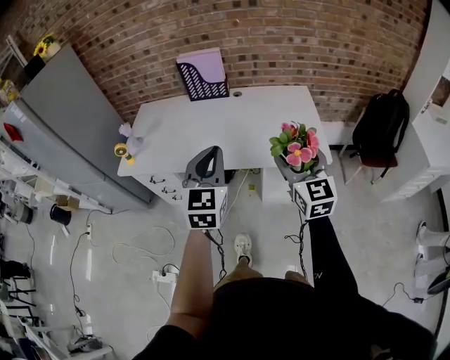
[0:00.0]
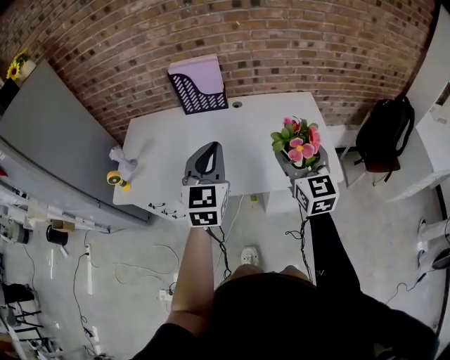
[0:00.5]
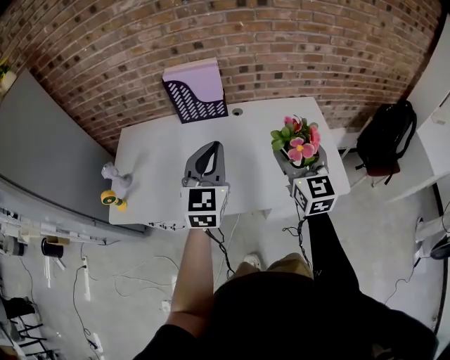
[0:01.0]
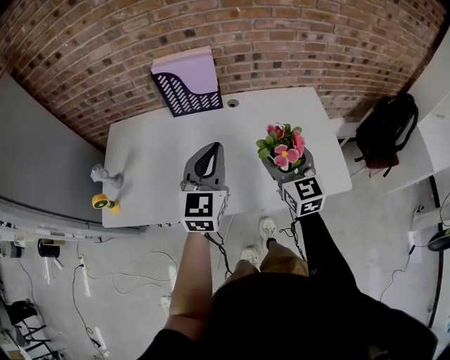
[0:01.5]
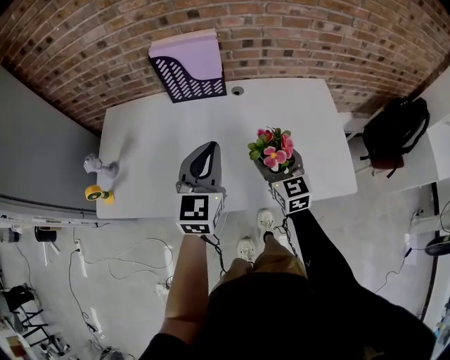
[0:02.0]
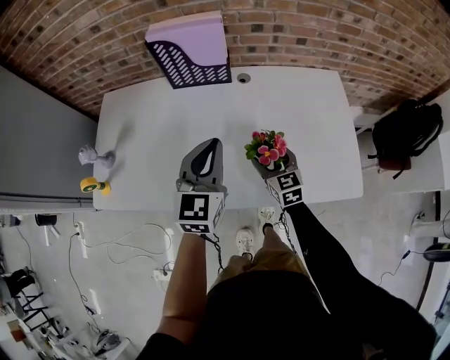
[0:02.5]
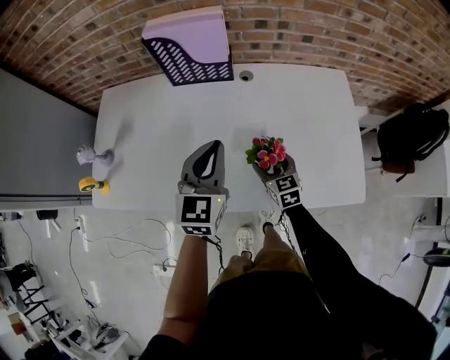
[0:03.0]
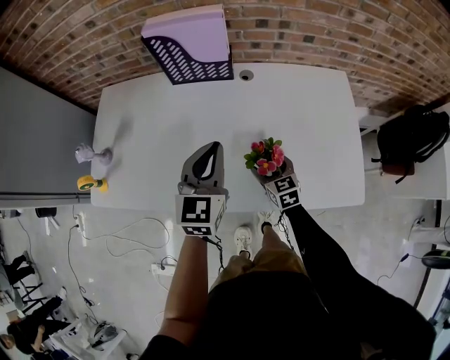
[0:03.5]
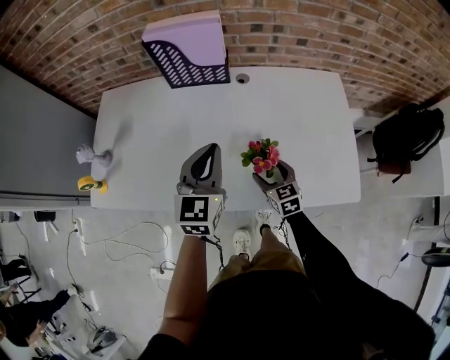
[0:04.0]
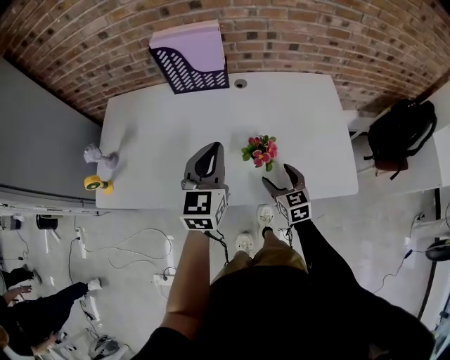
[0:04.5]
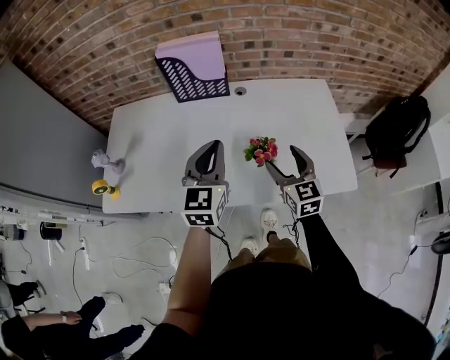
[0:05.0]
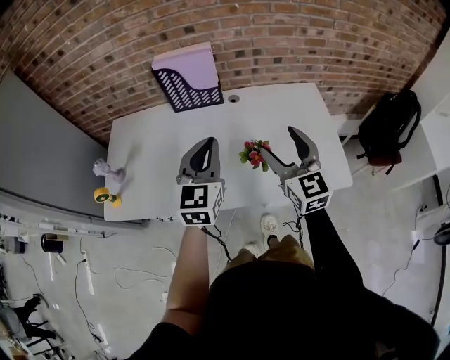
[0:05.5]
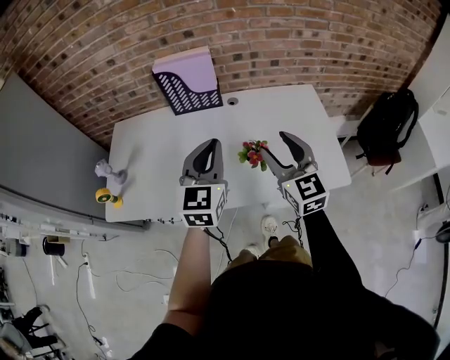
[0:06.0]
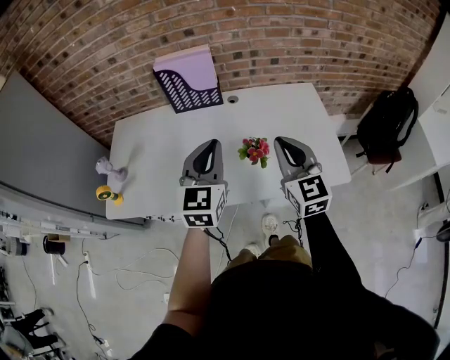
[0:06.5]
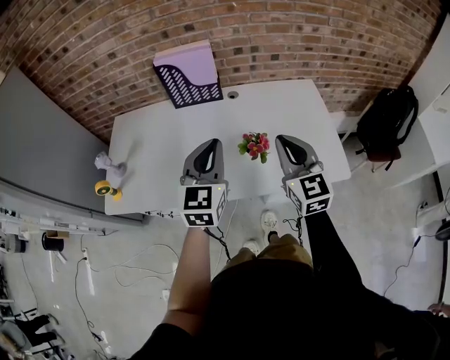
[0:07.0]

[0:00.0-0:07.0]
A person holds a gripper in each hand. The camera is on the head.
0:00.0 to 0:02.0: The left gripper moves forward, approximately 30 cm; the right gripper moves forward and downward, approximately 35 cm.
0:02.0 to 0:03.5: The right gripper goes roughly 15 cm downward, and changes its angle by some 20 degrees. Meanwhile the left gripper moves downward, about 5 cm.
0:03.5 to 0:05.0: The right gripper is displaced upward by some 20 cm, and turns by about 20 degrees; the left gripper travels upward and backward by roughly 10 cm.
0:05.0 to 0:07.0: The right gripper goes about 15 cm upward and backward, and closes up. The left gripper moves backward, some 5 cm.

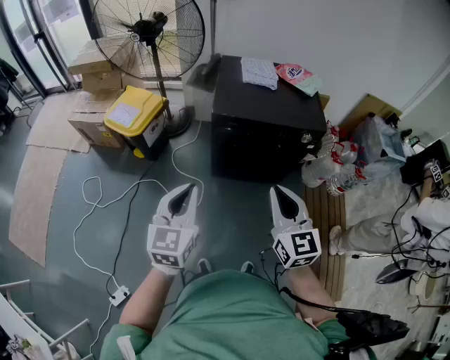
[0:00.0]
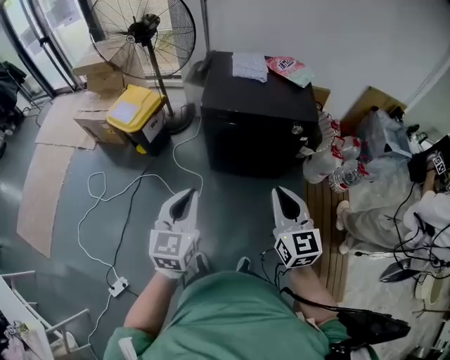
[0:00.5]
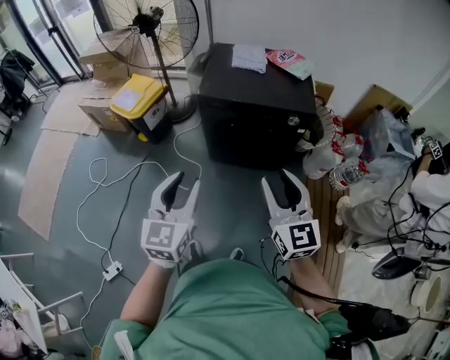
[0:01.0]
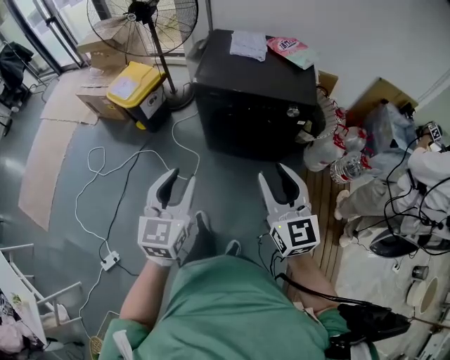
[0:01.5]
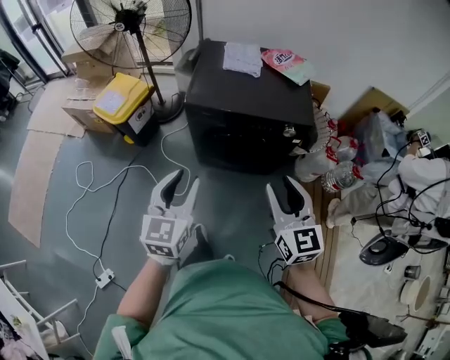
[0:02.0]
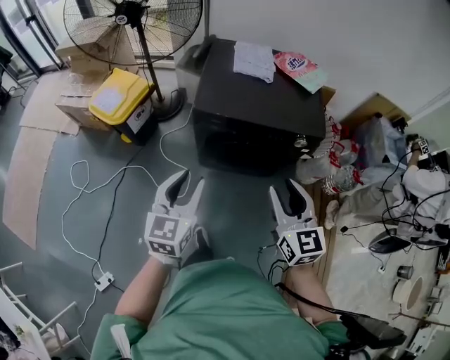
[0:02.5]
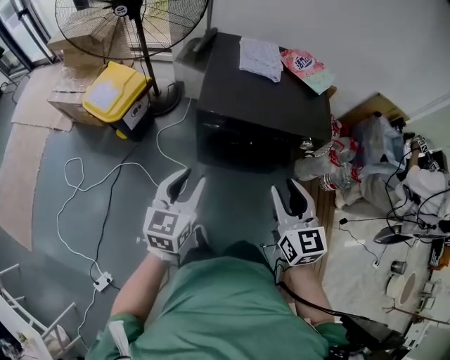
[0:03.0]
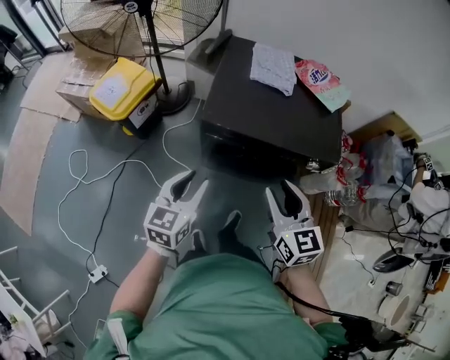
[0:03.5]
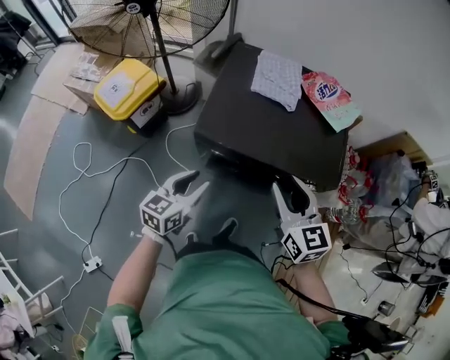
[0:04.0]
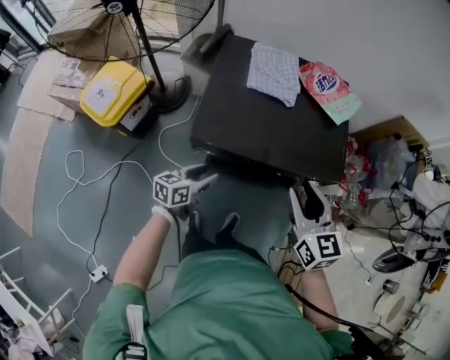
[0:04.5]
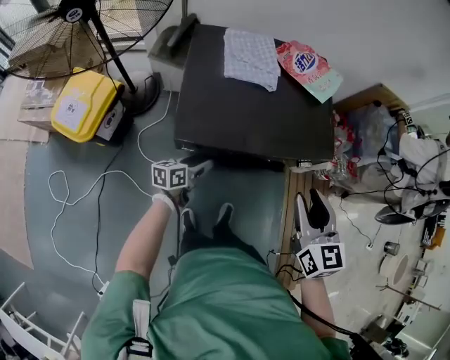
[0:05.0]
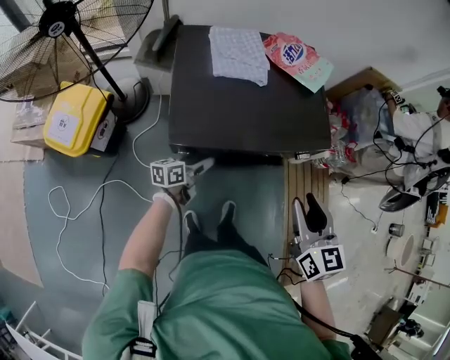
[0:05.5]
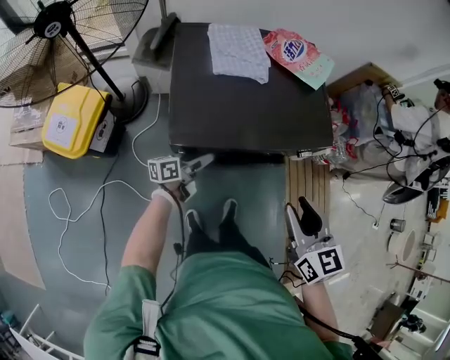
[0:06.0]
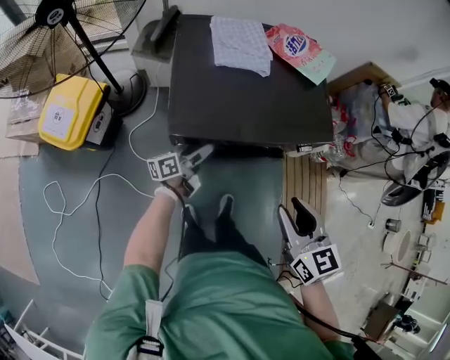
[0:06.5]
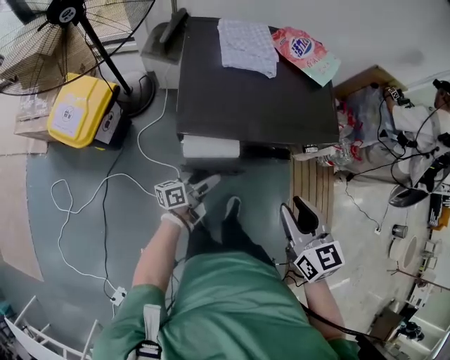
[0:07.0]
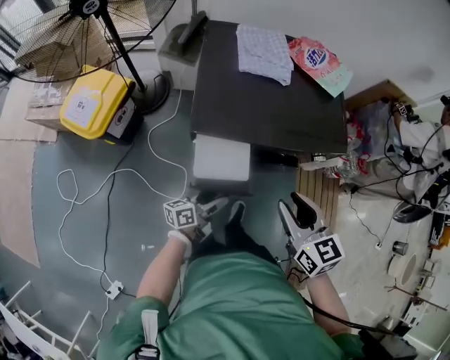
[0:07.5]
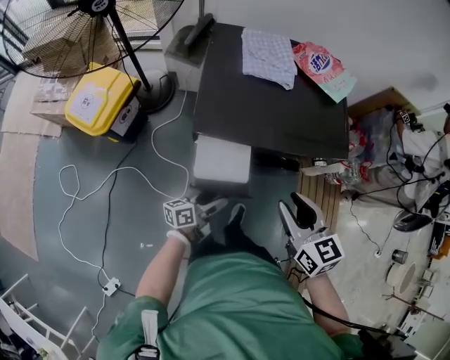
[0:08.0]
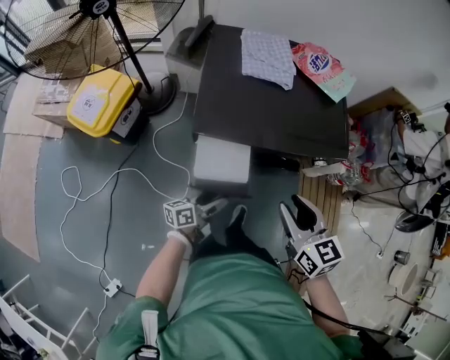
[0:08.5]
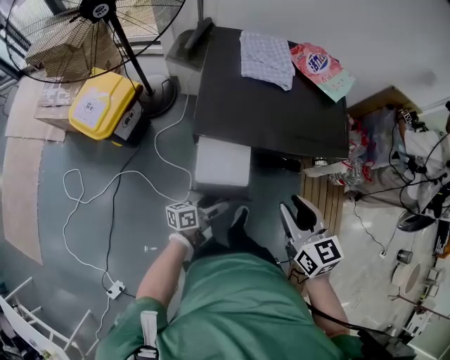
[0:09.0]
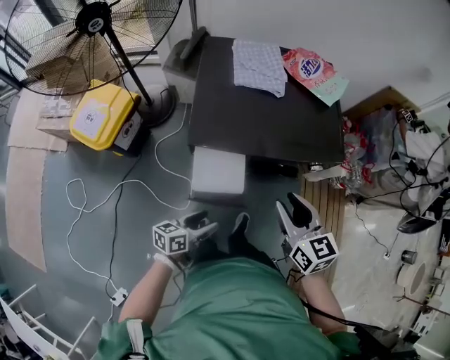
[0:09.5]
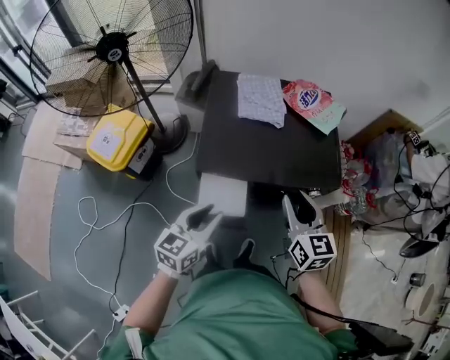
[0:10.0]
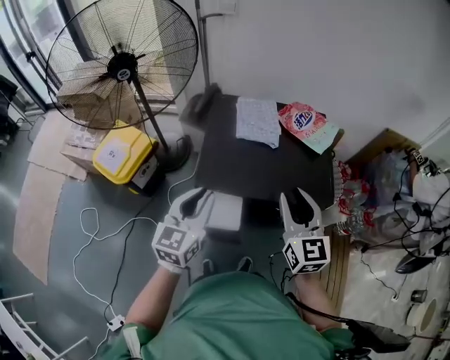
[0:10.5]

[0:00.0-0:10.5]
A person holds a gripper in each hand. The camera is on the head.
0:00.0 to 0:02.0: The grippers both shift to the right by approximately 15 cm. The left gripper opens up, while the right gripper opens its fingers.
0:02.0 to 0:04.0: The left gripper shifts some 30 cm forward and downward, and swivels some 20 degrees. Meanwhile the right gripper goes roughly 30 cm forward.
0:04.0 to 0:06.5: The right gripper shifts by about 10 cm, and turns by approximately 20 degrees. Meanwhile the left gripper moves downward, roughly 15 cm, twists roughly 40 degrees counterclockwise, seen from behind, and opens.
0:06.5 to 0:08.5: The left gripper moves backward, about 15 cm.
0:08.5 to 0:10.5: The left gripper moves upward, approximately 30 cm, rolls clockwise, seen from behind, by roughly 50 degrees, and closes up. Meanwhile the right gripper heads upward and forward, covering roughly 15 cm, and changes its angle by roughly 20 degrees.

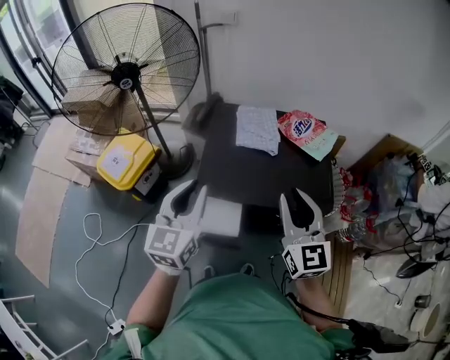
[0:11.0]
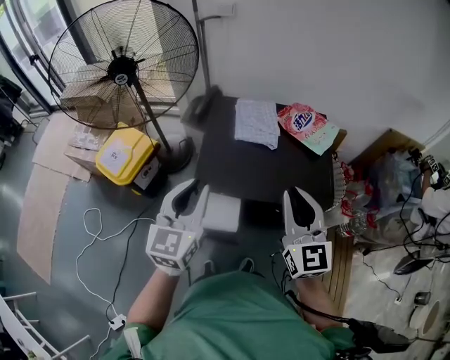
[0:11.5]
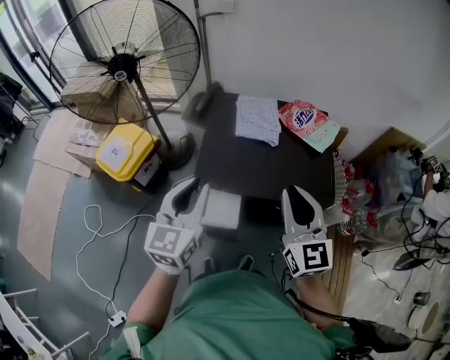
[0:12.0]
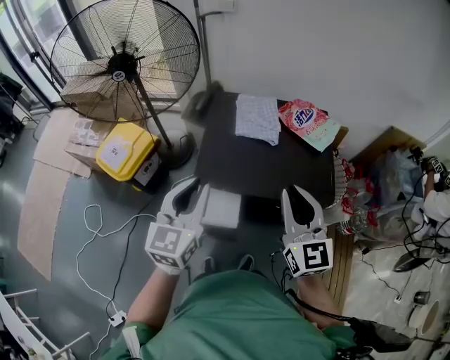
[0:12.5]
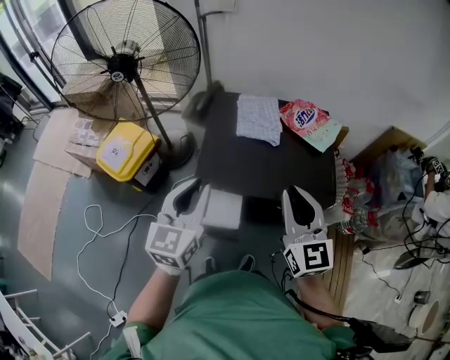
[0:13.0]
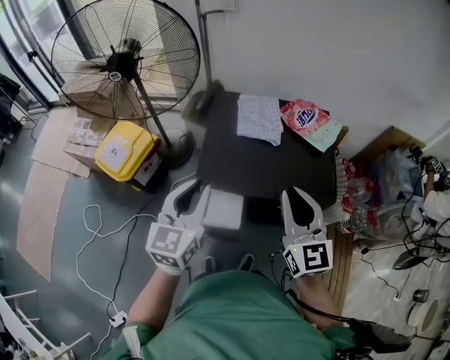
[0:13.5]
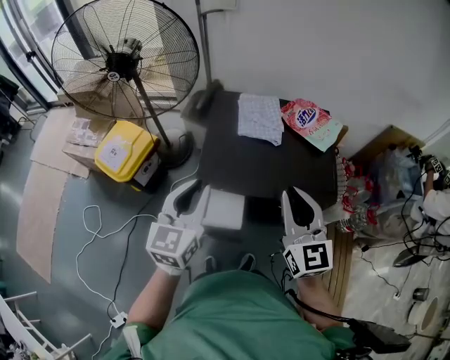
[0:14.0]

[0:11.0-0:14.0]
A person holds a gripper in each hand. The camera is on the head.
0:11.0 to 0:14.0: The grippers make only small movements.

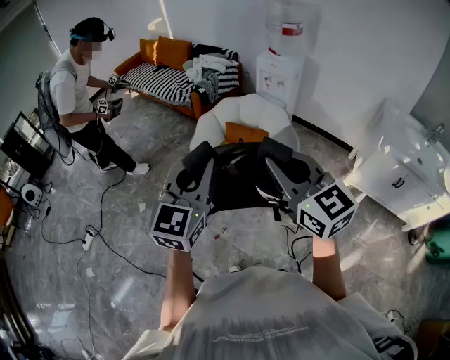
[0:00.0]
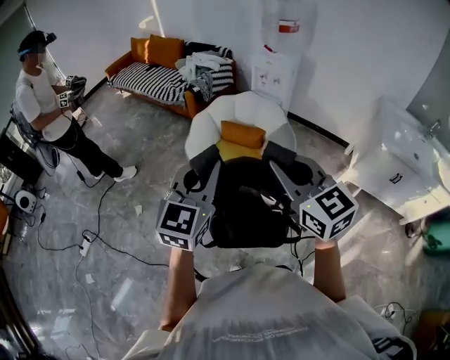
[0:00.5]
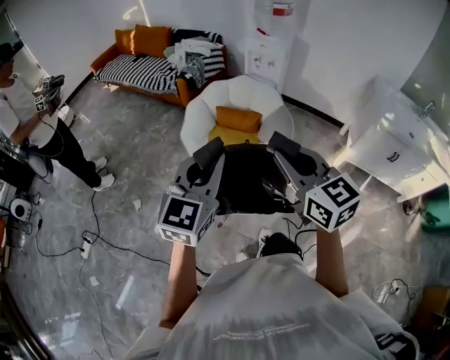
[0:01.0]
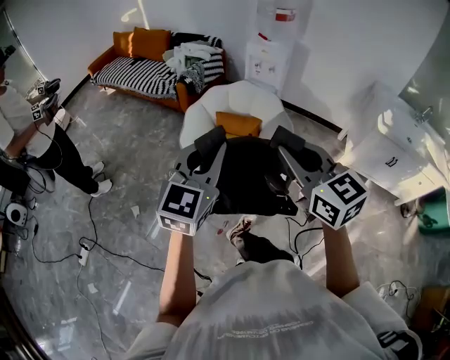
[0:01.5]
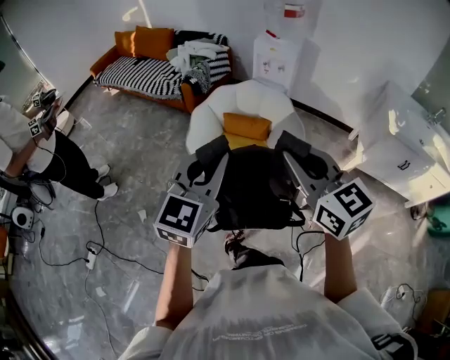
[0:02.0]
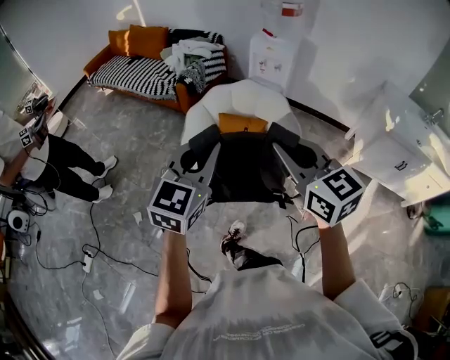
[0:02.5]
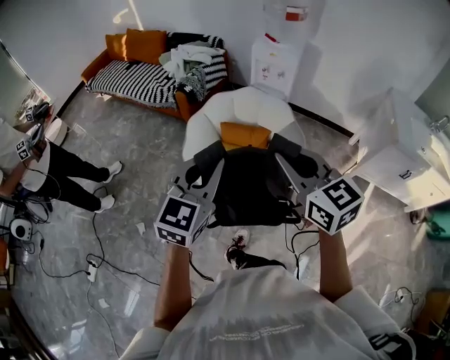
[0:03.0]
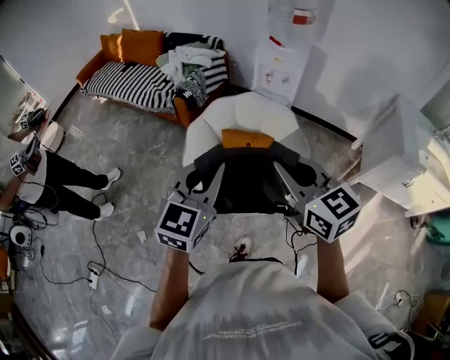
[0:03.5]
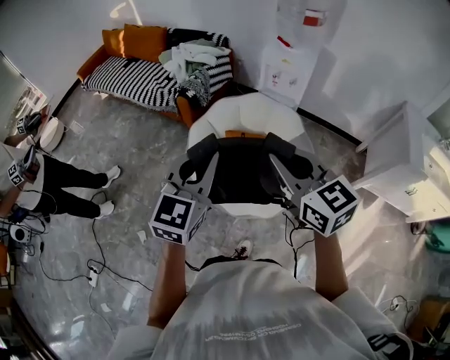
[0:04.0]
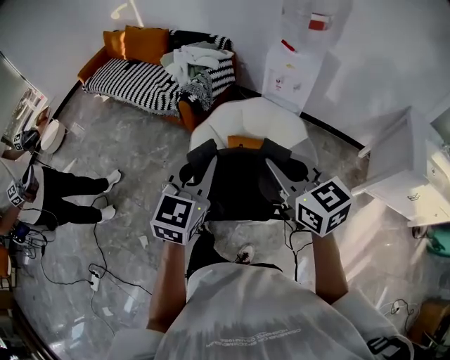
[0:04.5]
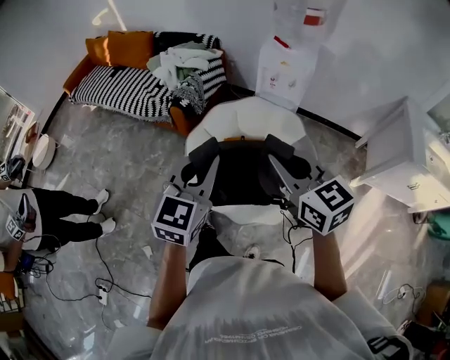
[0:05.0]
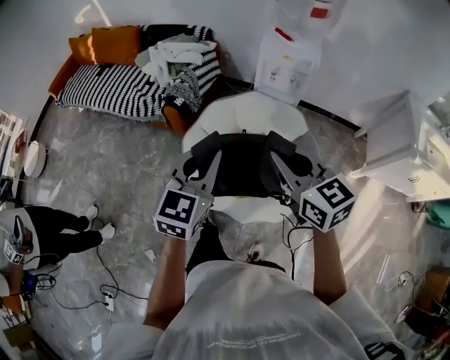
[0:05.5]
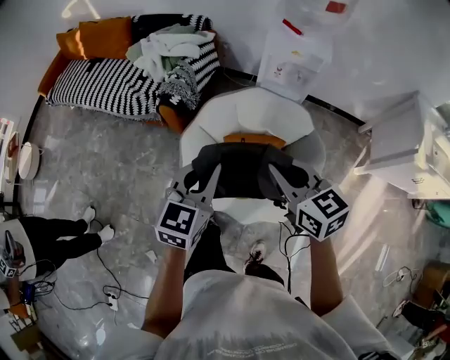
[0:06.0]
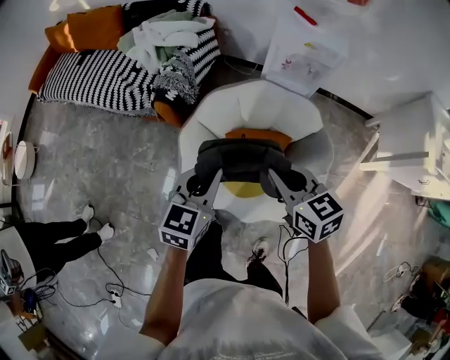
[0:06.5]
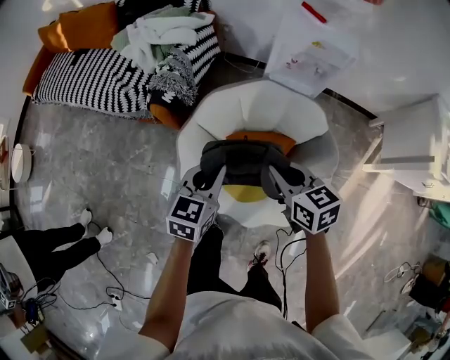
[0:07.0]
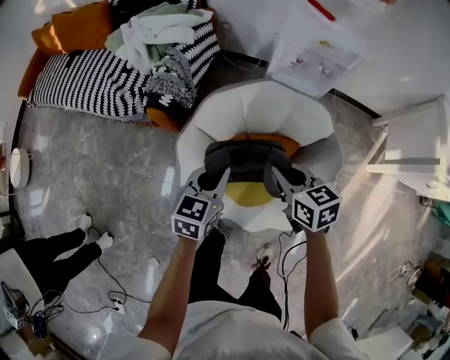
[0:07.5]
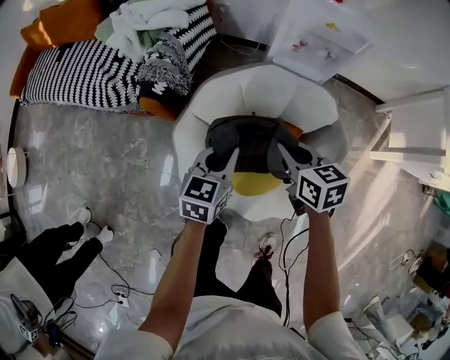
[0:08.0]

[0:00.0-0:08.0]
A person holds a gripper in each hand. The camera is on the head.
0:00.0 to 0:02.0: Both grippers move forward and to the left, some 15 cm.
0:02.0 to 0:04.0: Both grippers move forward, roughly 25 cm.
0:04.0 to 0:06.0: Both grippers move forward and downward, about 25 cm.
0:06.0 to 0:08.0: Both grippers travel together downward and forward, roughly 30 cm. The right gripper turns by approximately 20 degrees.
